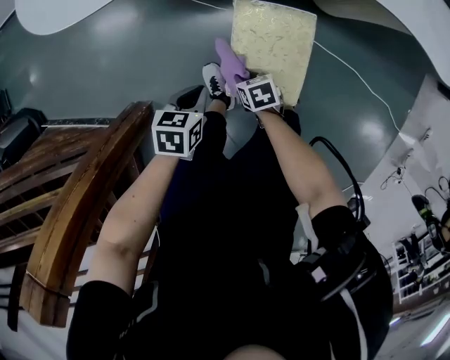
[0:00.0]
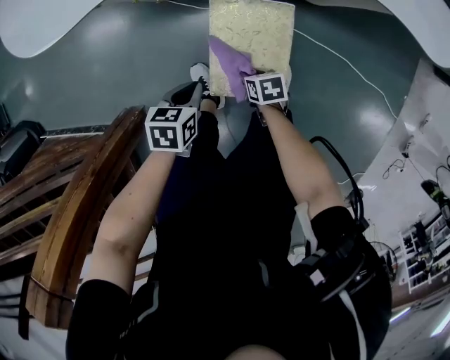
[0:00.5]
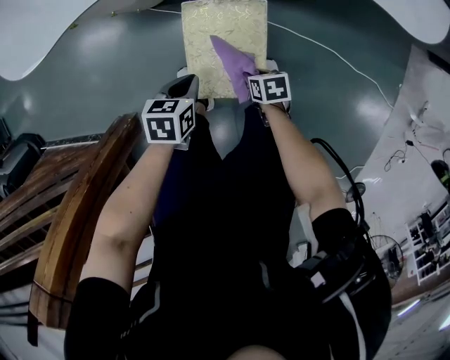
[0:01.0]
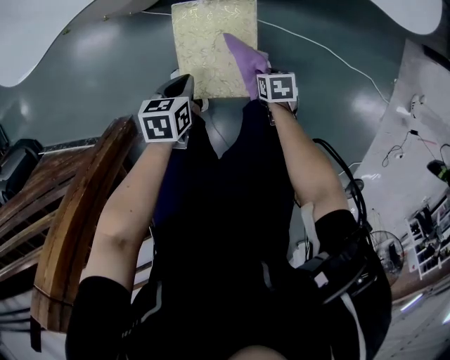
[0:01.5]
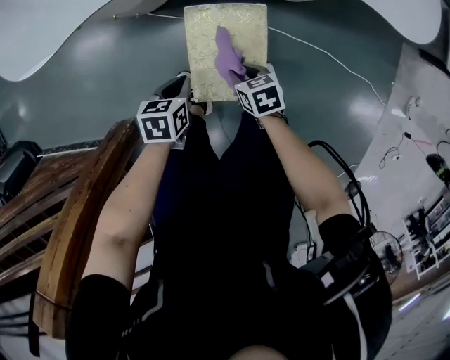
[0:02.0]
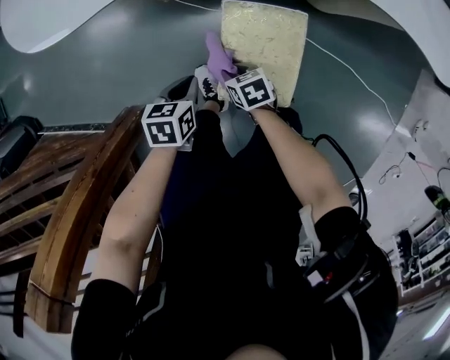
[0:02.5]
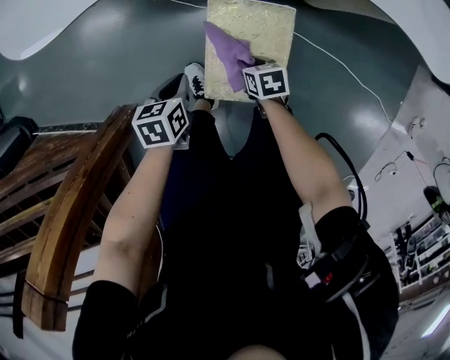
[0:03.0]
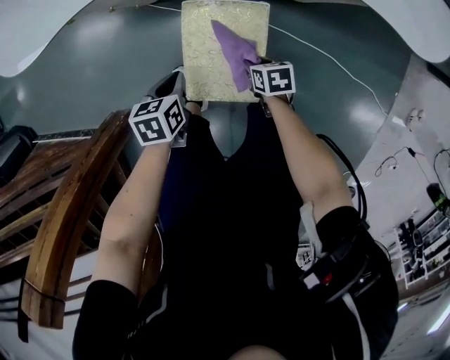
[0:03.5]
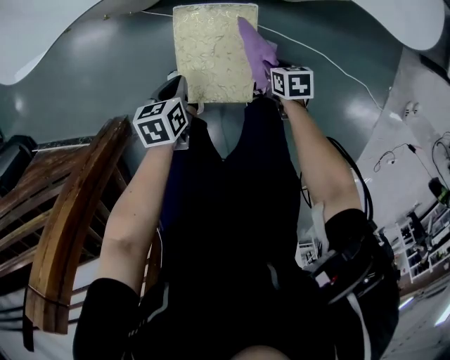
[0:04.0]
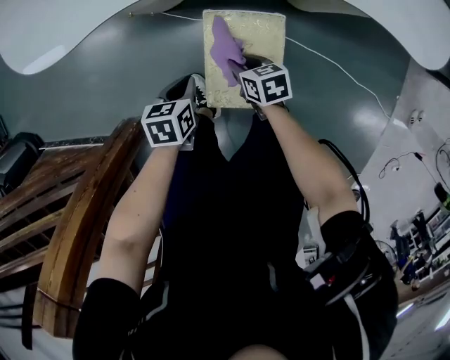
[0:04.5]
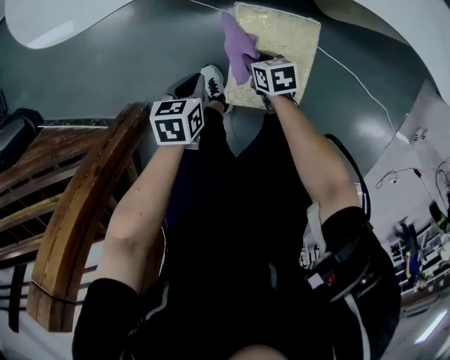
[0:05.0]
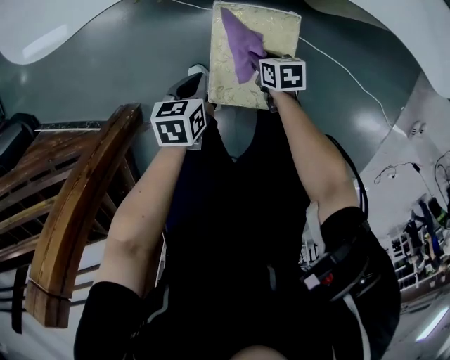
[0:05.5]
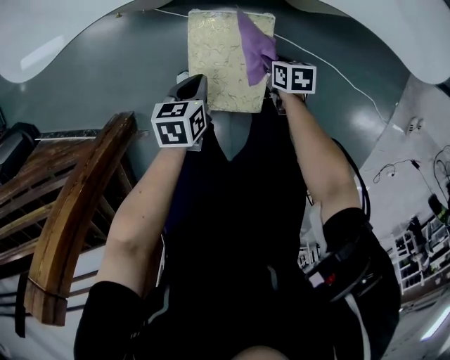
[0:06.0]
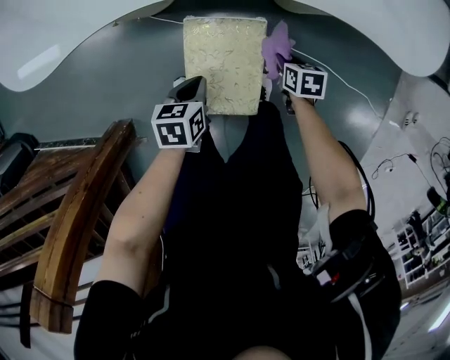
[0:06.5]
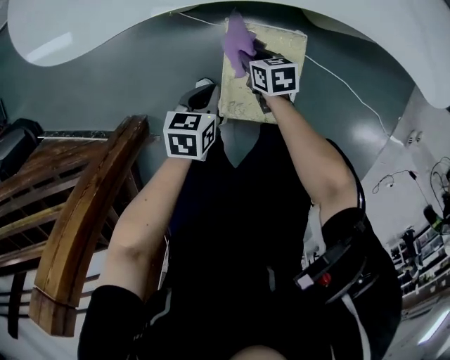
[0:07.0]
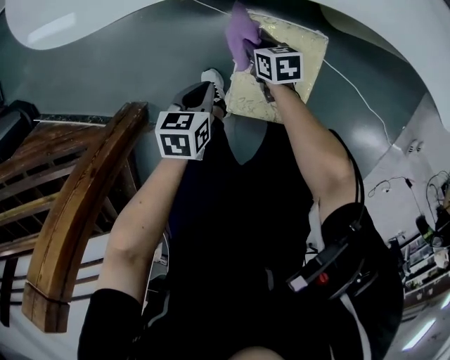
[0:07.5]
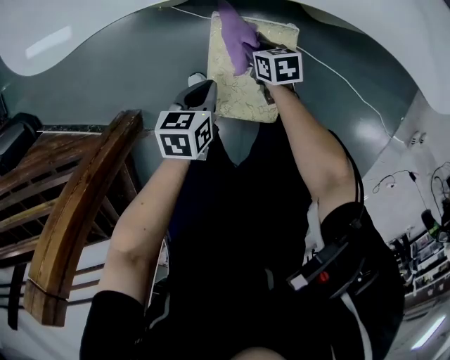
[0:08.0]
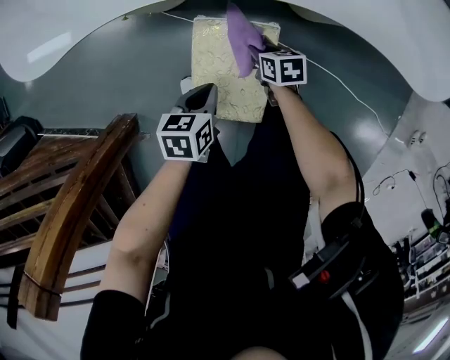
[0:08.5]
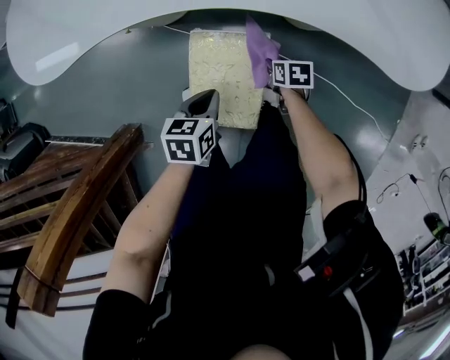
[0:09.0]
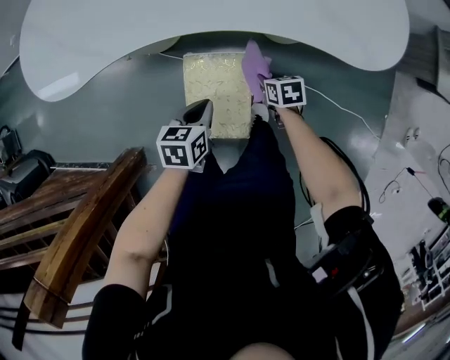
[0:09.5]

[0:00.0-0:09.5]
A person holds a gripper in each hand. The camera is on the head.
0.0 to 2.0 s: The right gripper is displaced to the right and upward by roughly 15 cm, while the left gripper is displaced to the right by roughly 10 cm.
2.0 to 4.0 s: The left gripper reaches about 5 cm to the left, then returns, while the right gripper heads to the right, covering roughly 15 cm.
4.0 to 5.5 s: The right gripper is displaced to the left and forward by approximately 15 cm.
5.5 to 7.5 s: The right gripper goes some 15 cm to the left and forward. Meanwhile the left gripper heads to the left, covering approximately 5 cm.
7.5 to 9.5 s: The left gripper travels to the right and upward by roughly 20 cm. Meanwhile the right gripper moves to the right, roughly 25 cm.

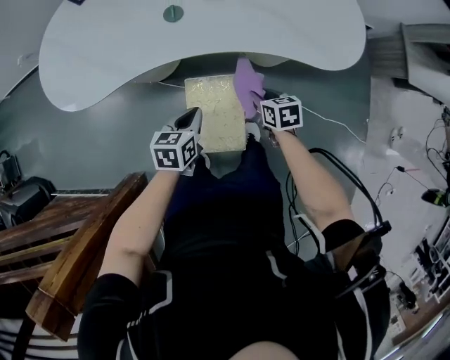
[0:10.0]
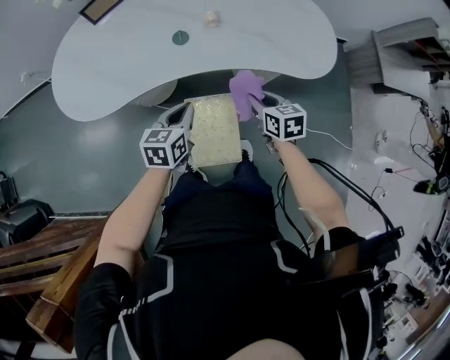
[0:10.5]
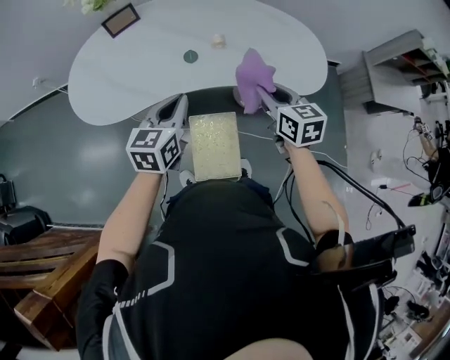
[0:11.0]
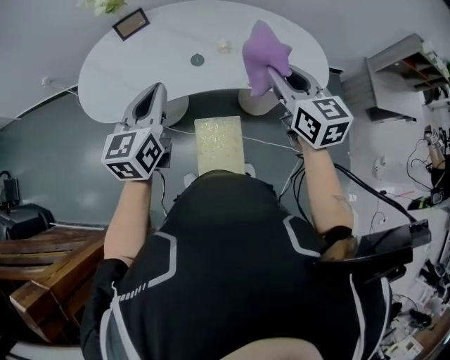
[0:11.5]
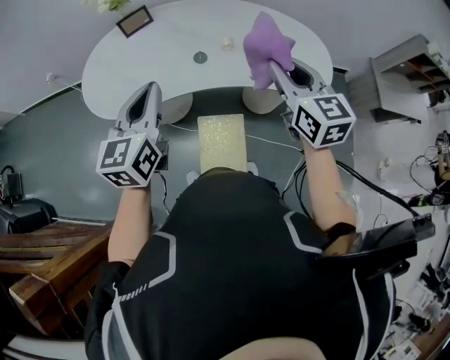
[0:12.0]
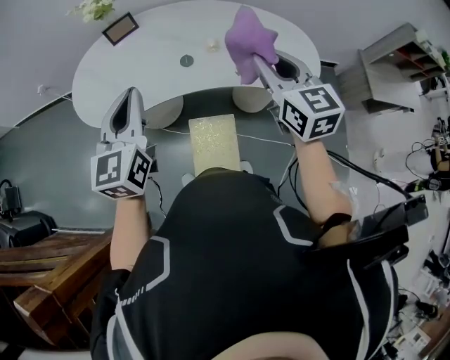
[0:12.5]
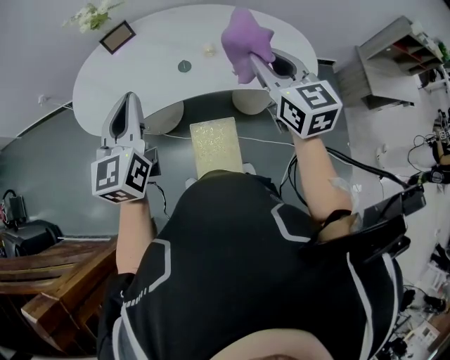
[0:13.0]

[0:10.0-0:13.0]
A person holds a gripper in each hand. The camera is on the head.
10.0 to 11.5 s: The two grippers go roughly 40 cm upward. The right gripper tilts its fingers some 40 degrees upward. The left gripper tilts its fingers some 30 degrees upward.
11.5 to 13.0 s: The left gripper is displaced upward by about 5 cm.

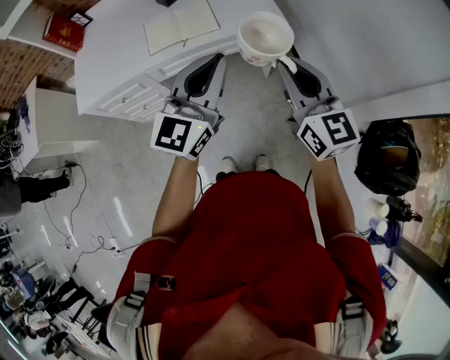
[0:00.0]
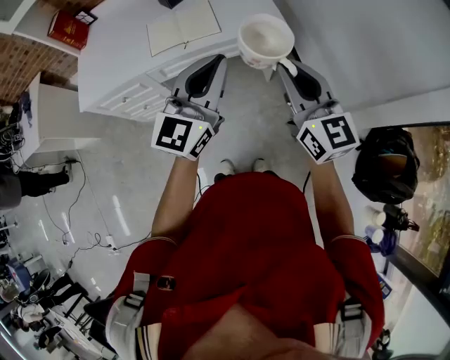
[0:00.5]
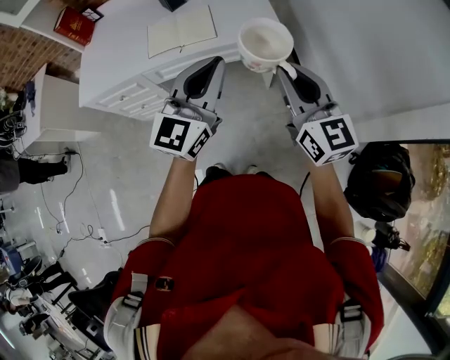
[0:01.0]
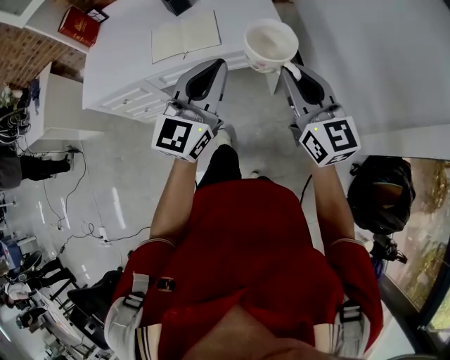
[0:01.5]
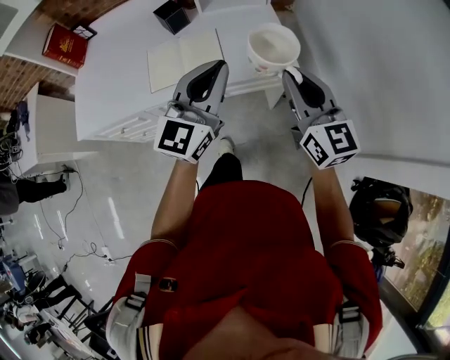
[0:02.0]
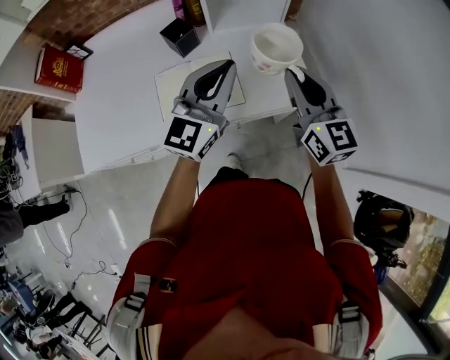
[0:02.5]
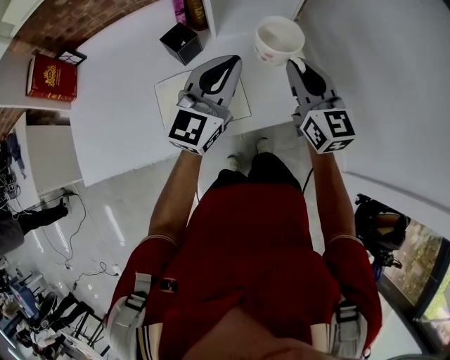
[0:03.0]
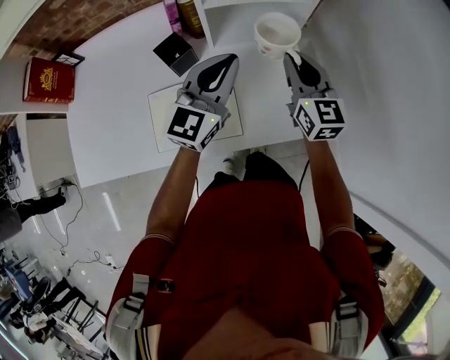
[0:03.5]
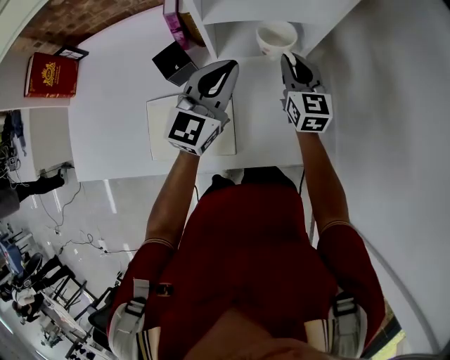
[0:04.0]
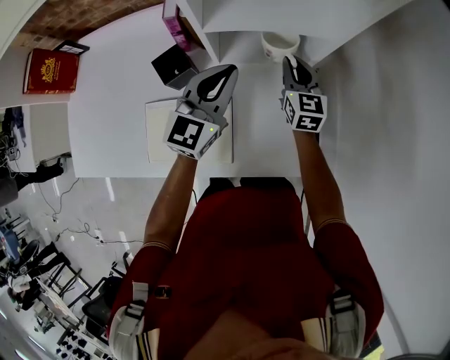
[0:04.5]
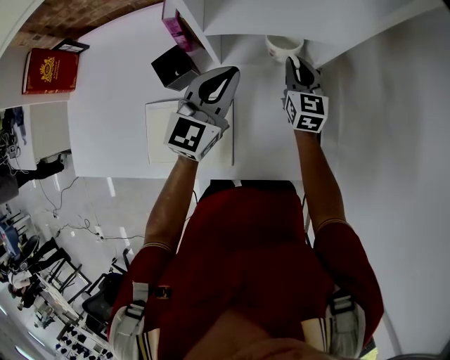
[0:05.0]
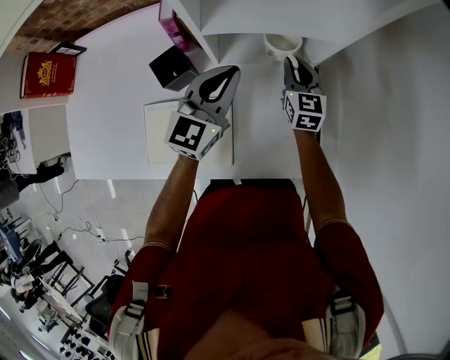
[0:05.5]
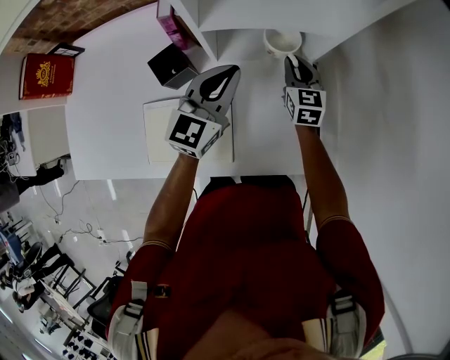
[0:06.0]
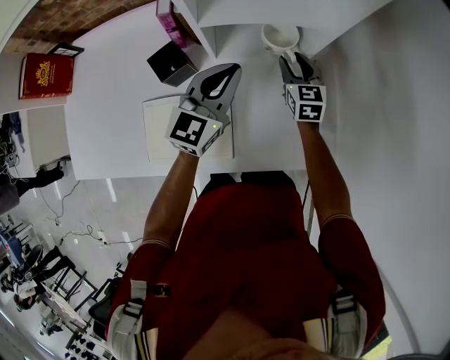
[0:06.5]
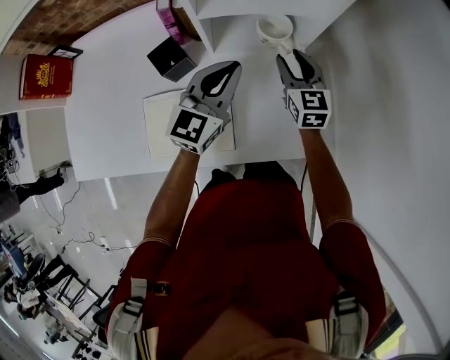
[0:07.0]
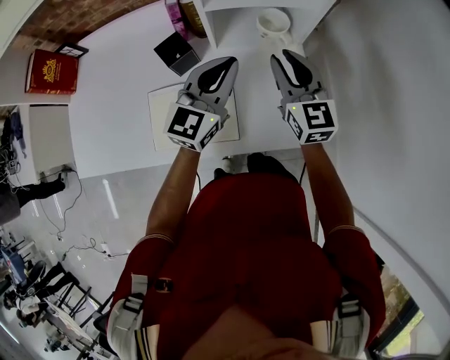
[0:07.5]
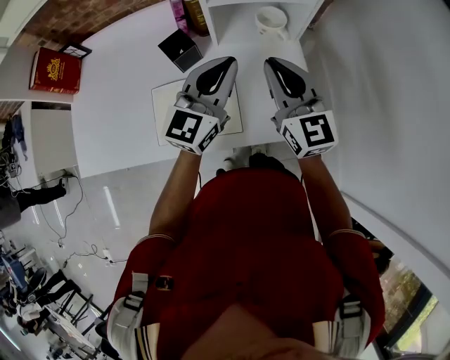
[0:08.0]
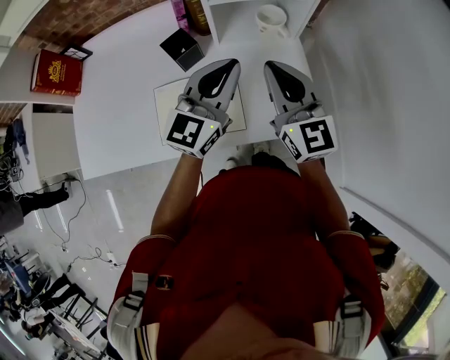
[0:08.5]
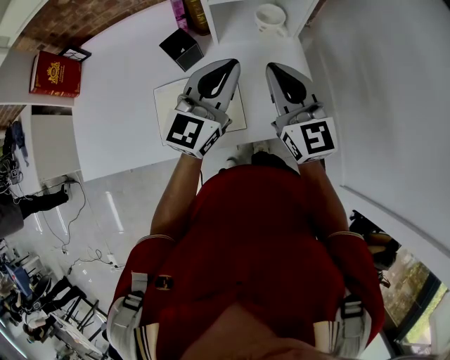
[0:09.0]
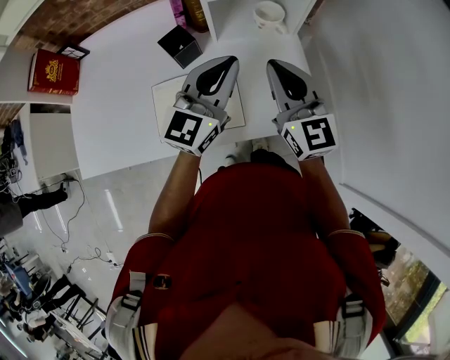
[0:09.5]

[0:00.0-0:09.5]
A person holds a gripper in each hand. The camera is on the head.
0.0 to 2.0 s: Both grippers travel together forward, approximately 20 cm.
2.0 to 4.0 s: Both grippers travel together forward, roughly 40 cm.
4.0 to 5.5 s: The right gripper is displaced downward and forward by approximately 10 cm, while the left gripper changes place by about 5 cm.
5.5 to 7.5 s: The left gripper heads backward and upward, covering roughly 10 cm. Meanwhile the right gripper is displaced upward and backward by roughly 20 cm.
7.5 to 9.5 s: The right gripper travels backward and upward by about 10 cm, and closes, while the left gripper shifts roughly 5 cm backward.

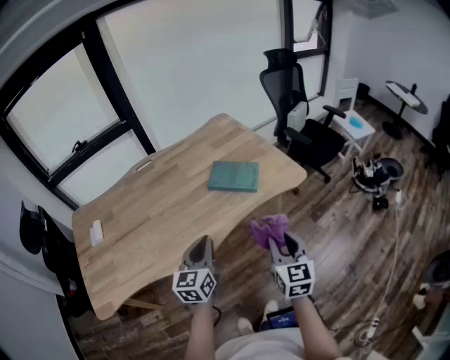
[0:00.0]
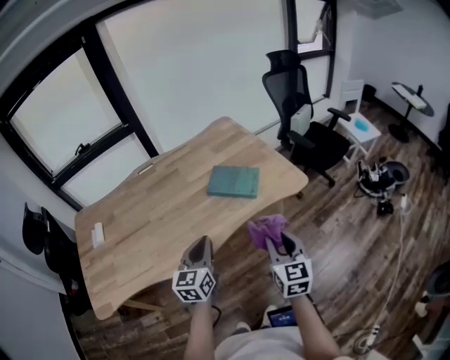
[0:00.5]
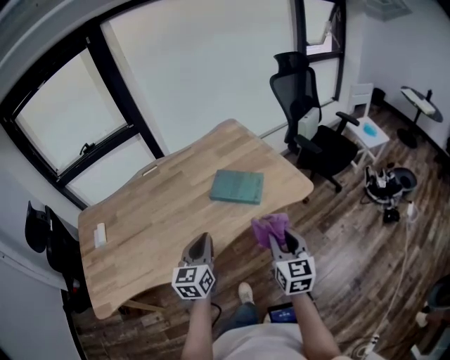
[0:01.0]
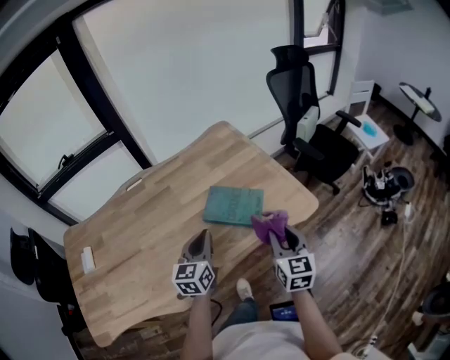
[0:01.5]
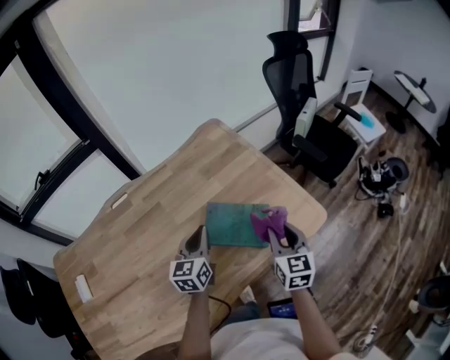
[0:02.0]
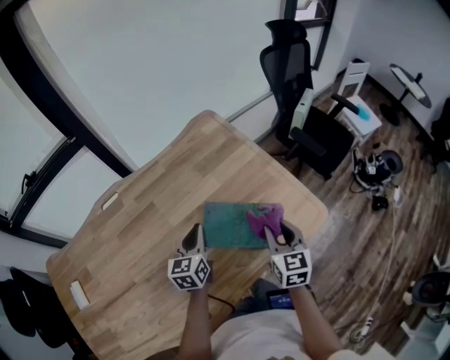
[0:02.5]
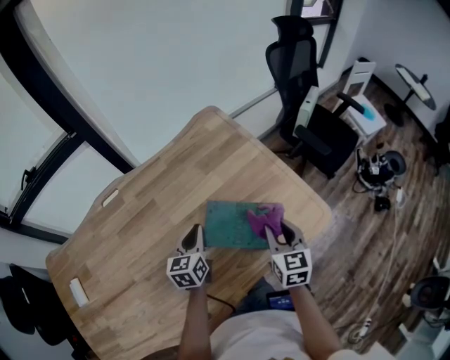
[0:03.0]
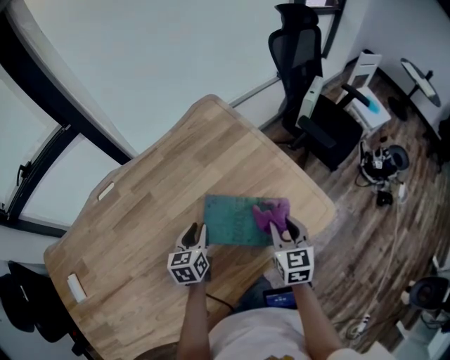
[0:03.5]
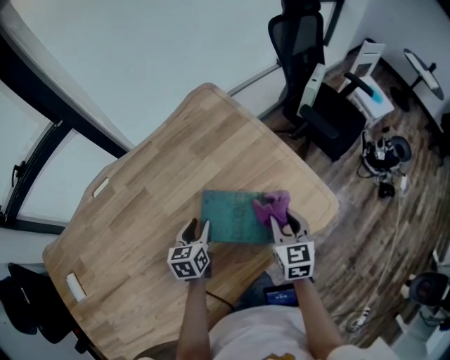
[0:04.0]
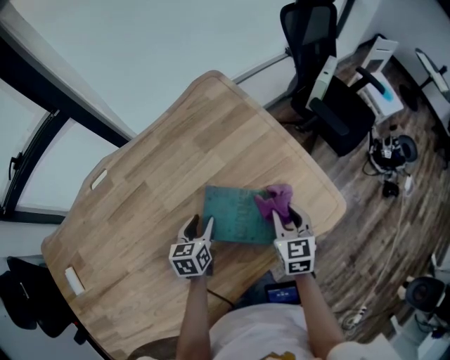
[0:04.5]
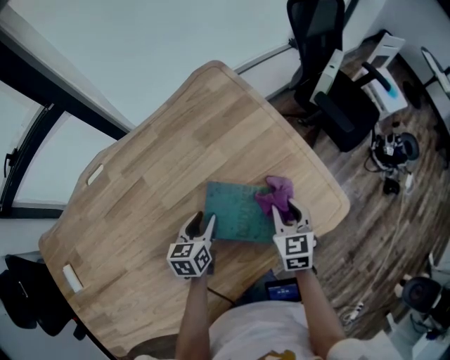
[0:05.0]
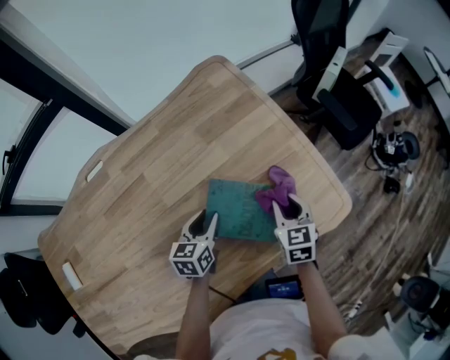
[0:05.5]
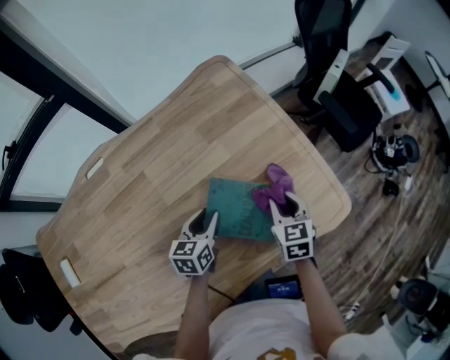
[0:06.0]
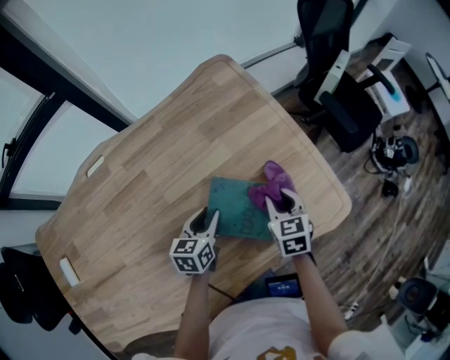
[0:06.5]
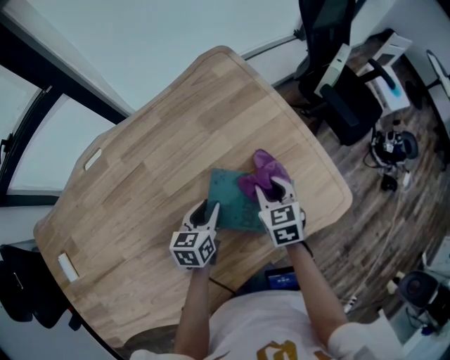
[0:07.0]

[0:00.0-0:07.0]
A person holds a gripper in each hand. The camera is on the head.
0.0 to 2.0 s: The grippers both shift forward by roughly 35 cm.
2.0 to 3.5 s: The left gripper is displaced downward by about 10 cm, and opens up. Meanwhile the right gripper is displaced downward by some 5 cm.
3.5 to 5.0 s: The right gripper moves downward and forward, some 10 cm; the left gripper shifts by approximately 5 cm, and opens up.
5.0 to 7.0 s: The right gripper moves to the left, about 5 cm.
